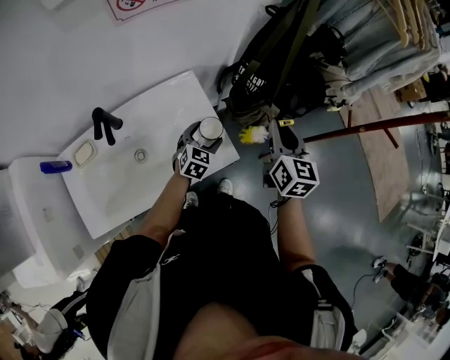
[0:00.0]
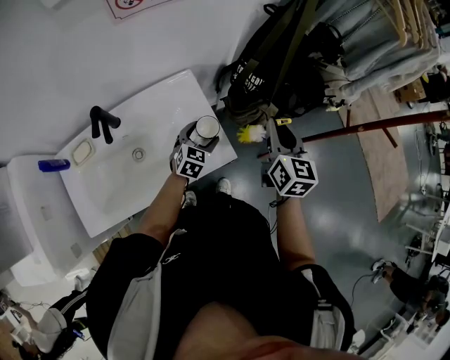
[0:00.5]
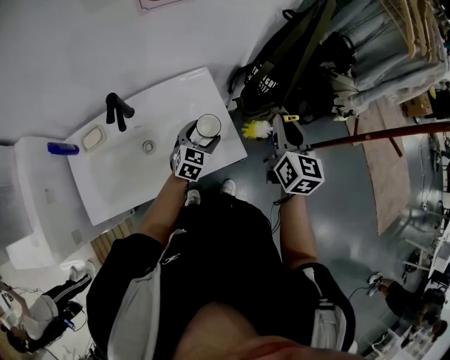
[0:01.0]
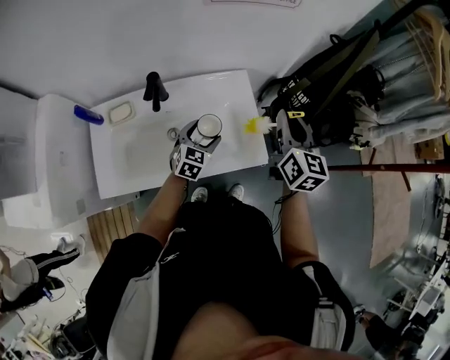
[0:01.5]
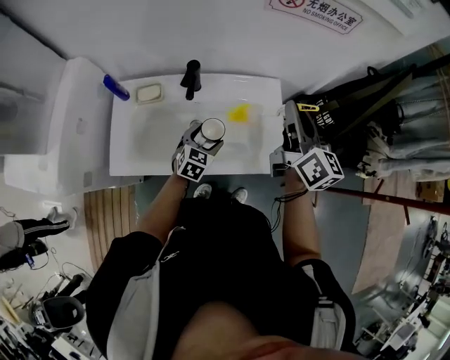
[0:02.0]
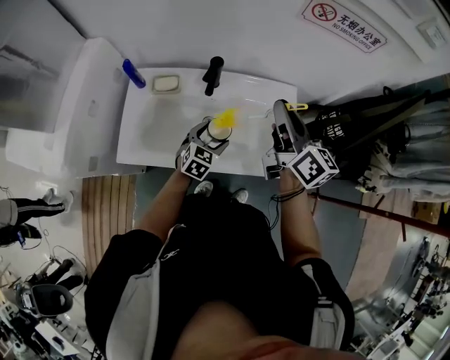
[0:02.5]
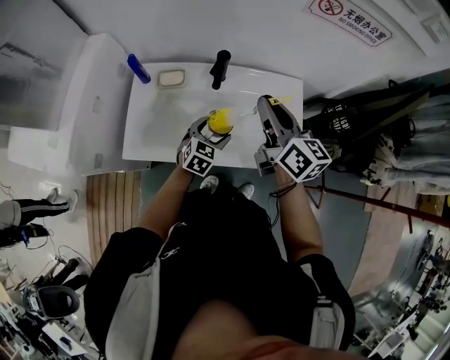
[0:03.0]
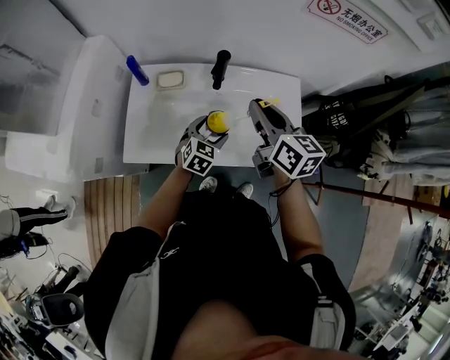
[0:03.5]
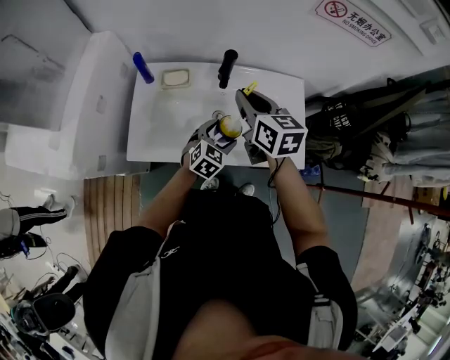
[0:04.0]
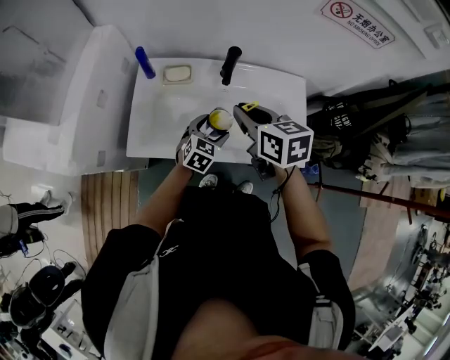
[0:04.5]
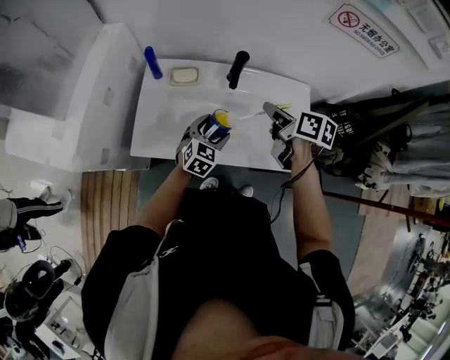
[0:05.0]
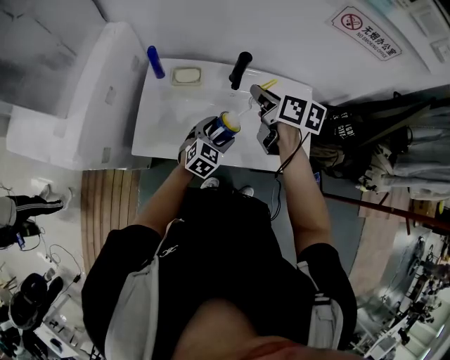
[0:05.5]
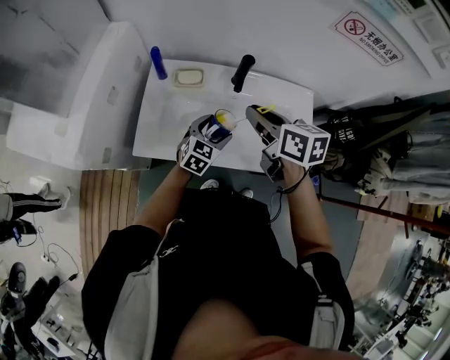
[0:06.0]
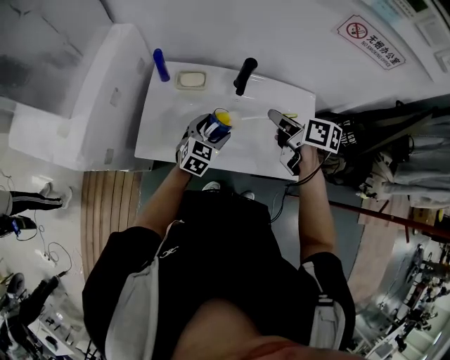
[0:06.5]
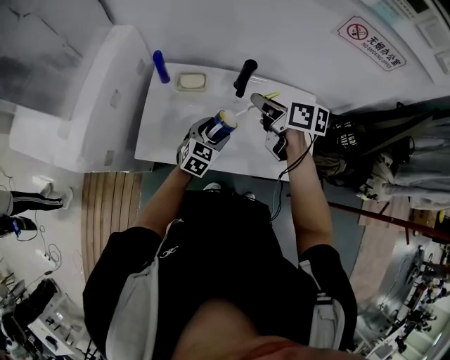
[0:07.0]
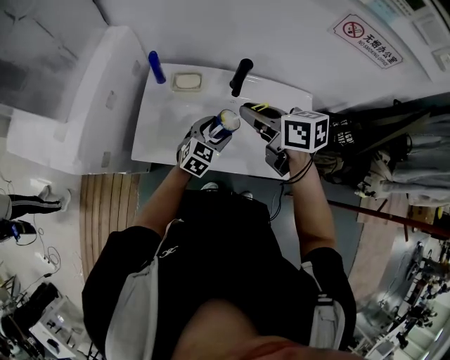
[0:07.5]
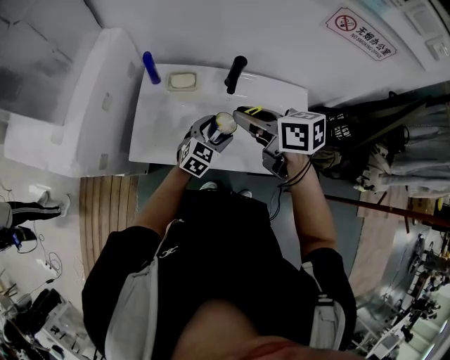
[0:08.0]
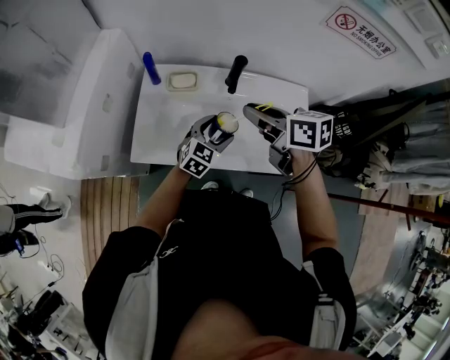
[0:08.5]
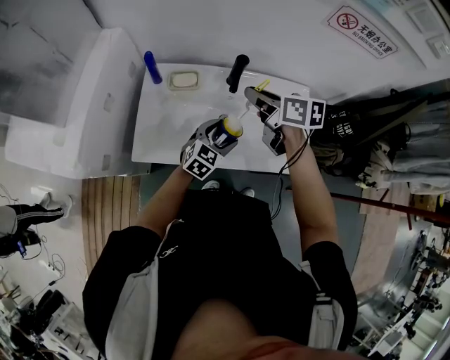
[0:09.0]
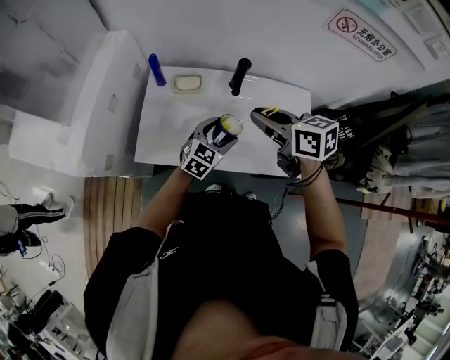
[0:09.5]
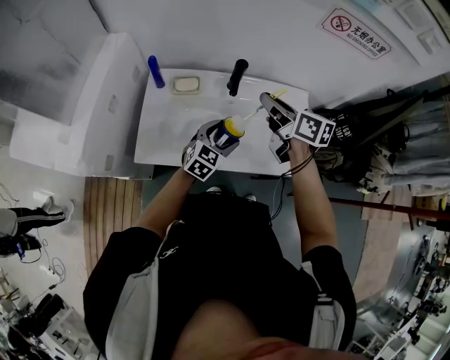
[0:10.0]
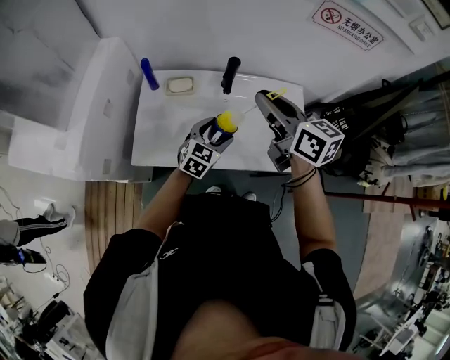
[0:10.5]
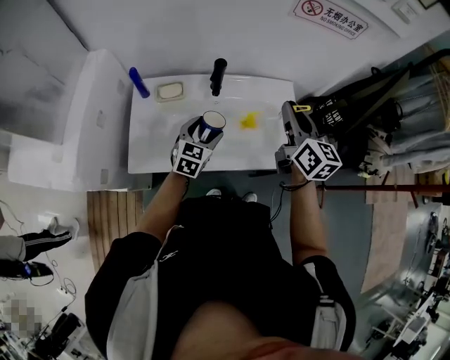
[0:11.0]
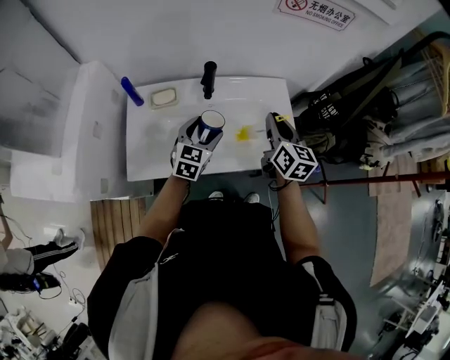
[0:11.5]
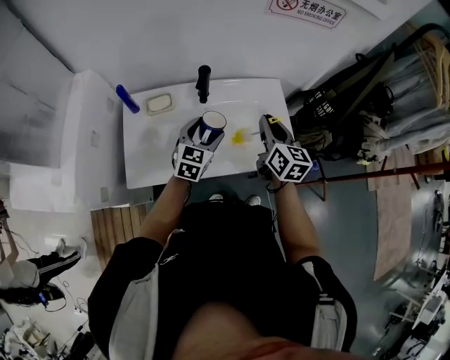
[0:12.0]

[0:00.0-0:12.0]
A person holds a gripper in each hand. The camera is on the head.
0:00.0 to 0:02.0: The right gripper changes place by approximately 25 cm, and rotates approximately 40 degrees, while the left gripper ends up about 25 cm from where it was, and swivels some 30 degrees.
0:02.0 to 0:04.0: The left gripper changes place by some 5 cm. The right gripper heads to the left, covering roughly 25 cm, and swivels some 30 degrees.
0:04.0 to 0:06.0: The right gripper goes forward and backward, some 10 cm each way, reversing 2 times; the left gripper is displaced to the left by approximately 5 cm.
0:06.0 to 0:08.0: The right gripper moves about 5 cm to the right and comes back.
0:08.0 to 0:10.0: The right gripper heads to the right, covering about 10 cm, and changes its angle by roughly 20 degrees.
0:10.0 to 0:12.0: The right gripper heads to the right and backward, covering about 15 cm, and turns by approximately 40 degrees.

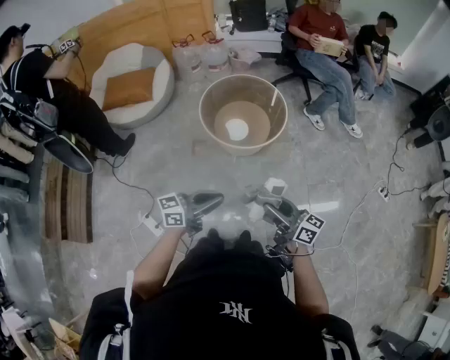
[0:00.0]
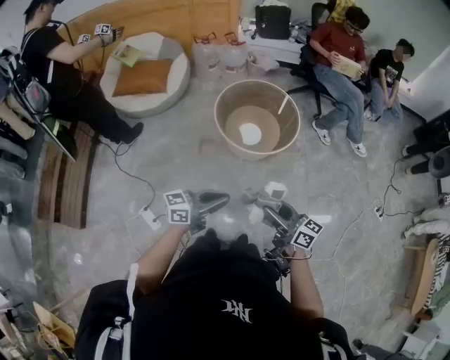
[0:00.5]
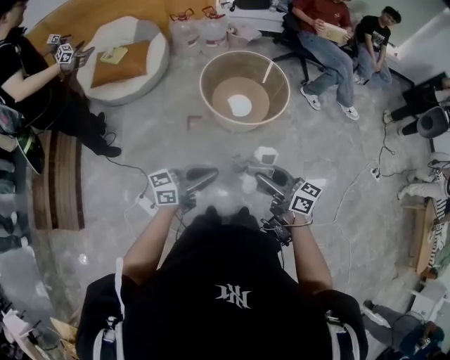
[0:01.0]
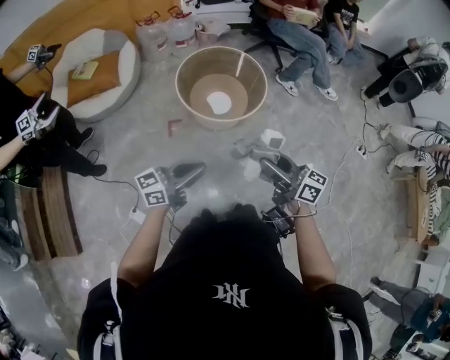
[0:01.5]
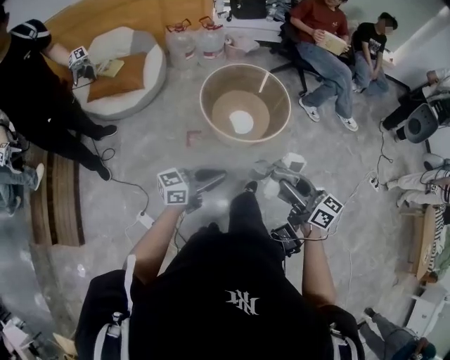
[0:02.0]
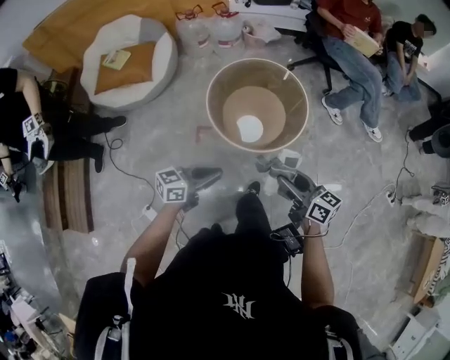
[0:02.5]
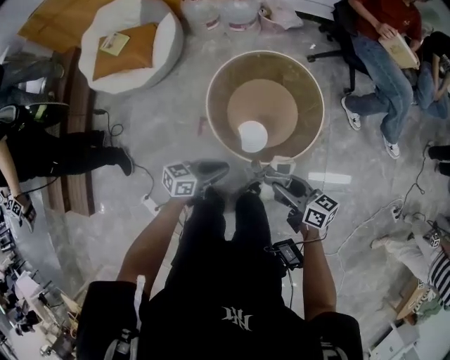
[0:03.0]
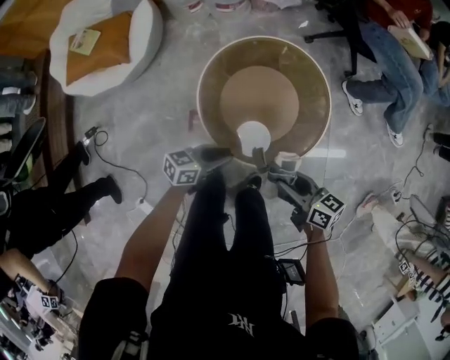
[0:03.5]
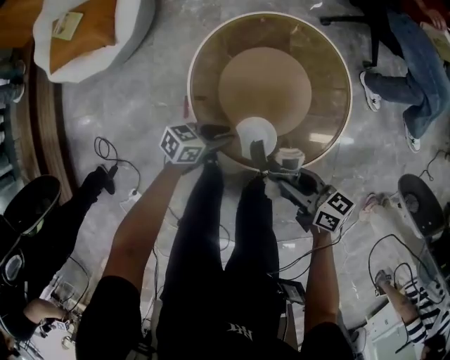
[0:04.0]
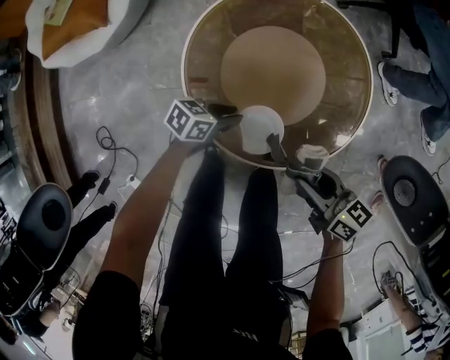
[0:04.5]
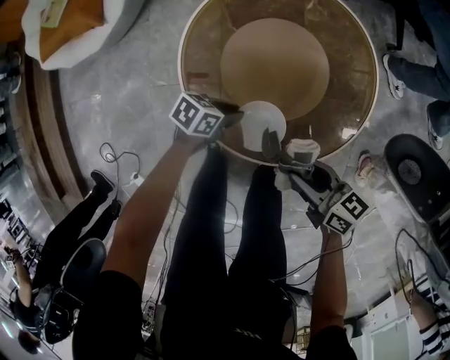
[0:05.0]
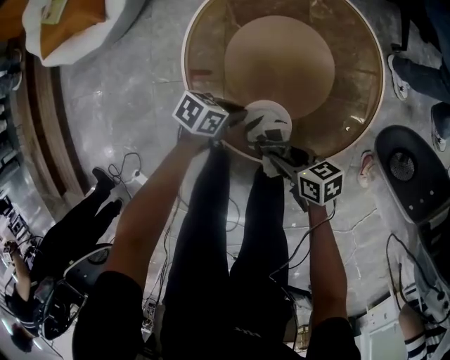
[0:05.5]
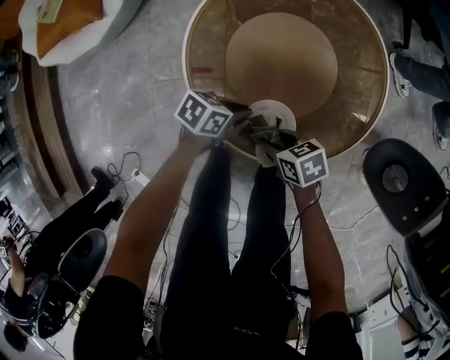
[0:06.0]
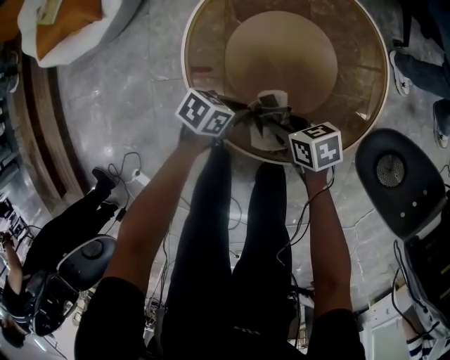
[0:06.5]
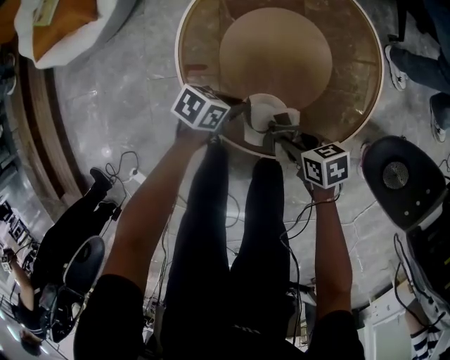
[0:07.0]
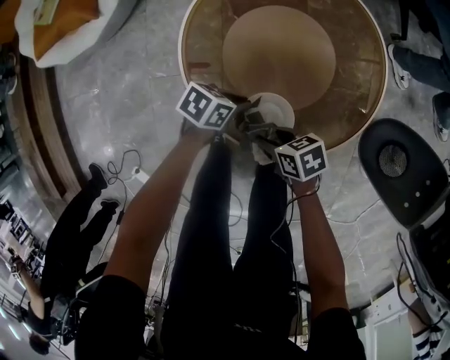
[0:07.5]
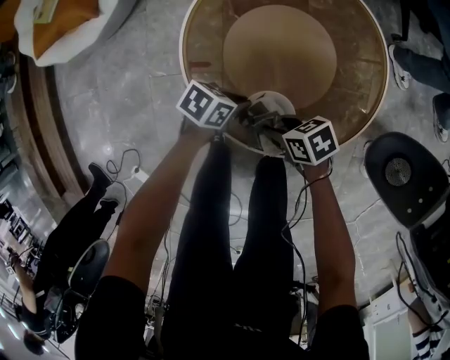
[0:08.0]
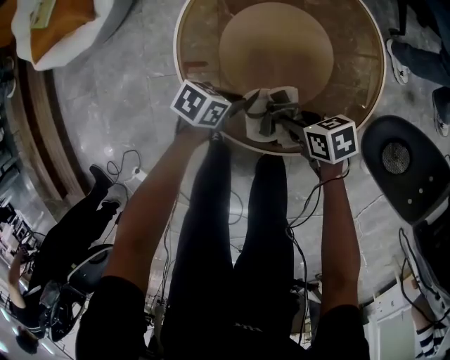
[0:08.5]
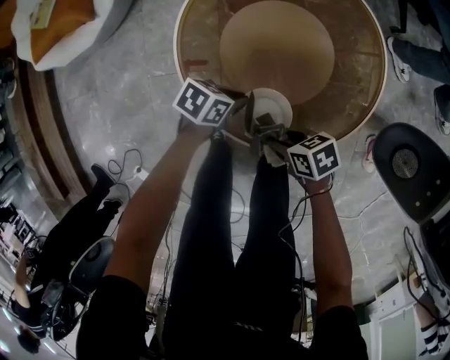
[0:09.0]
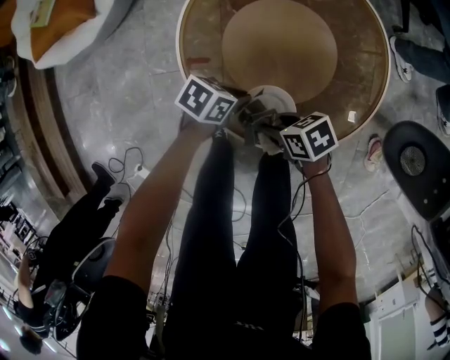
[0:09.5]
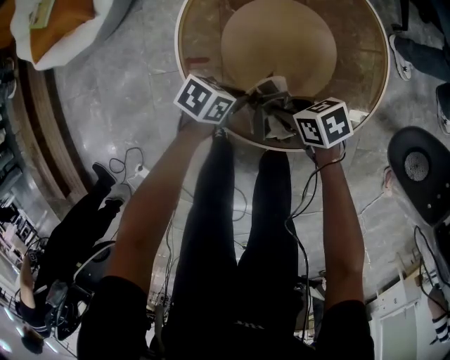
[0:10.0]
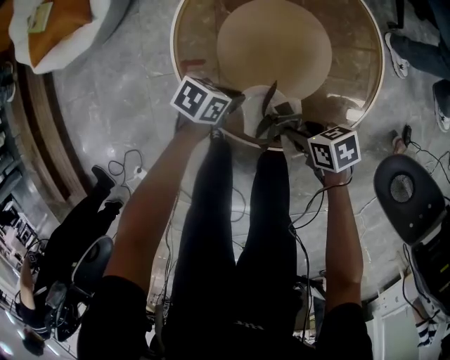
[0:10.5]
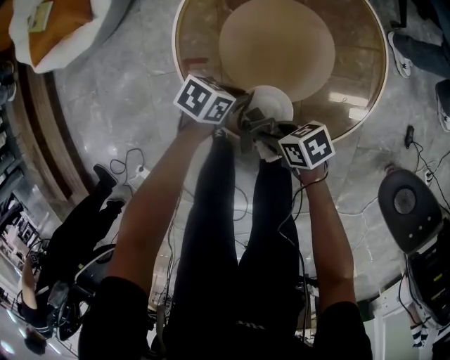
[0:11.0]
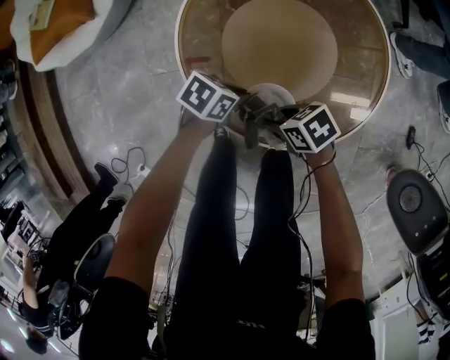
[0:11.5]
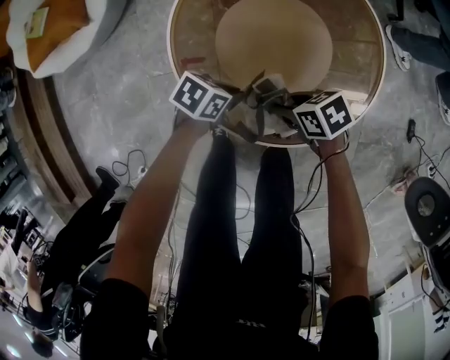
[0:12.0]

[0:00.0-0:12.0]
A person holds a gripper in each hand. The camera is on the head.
0:00.0 to 0:02.0: Both grippers move to the left and forward, some 15 cm.
0:02.0 to 0:04.0: The pair of grippers is taken some 40 cm. The left gripper tilts its fingers some 30 degrees downward. The right gripper turns by some 30 degrees.
0:04.0 to 0:06.0: The right gripper goes roughly 20 cm downward, and turns by about 30 degrees. The left gripper travels downward by approximately 10 cm.
0:08.0 to 0:10.0: The right gripper ends up about 5 cm from where it was.

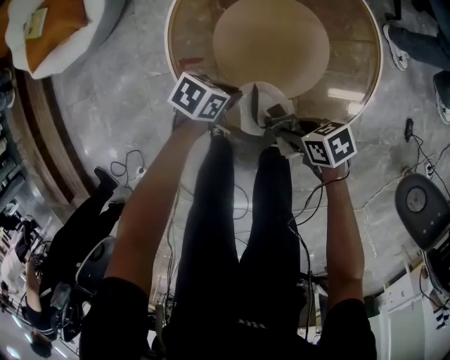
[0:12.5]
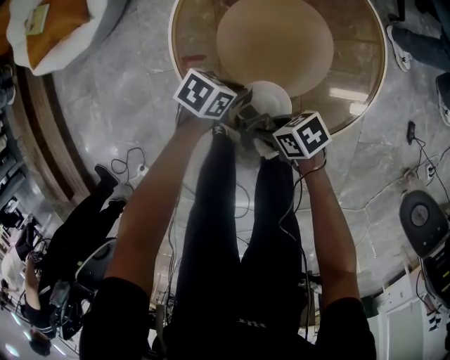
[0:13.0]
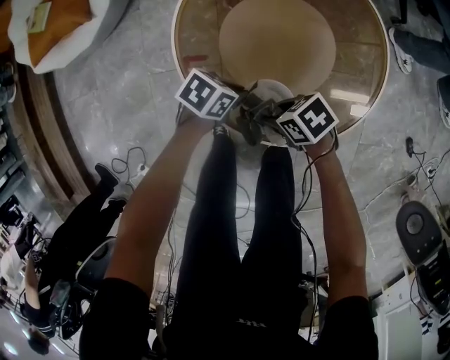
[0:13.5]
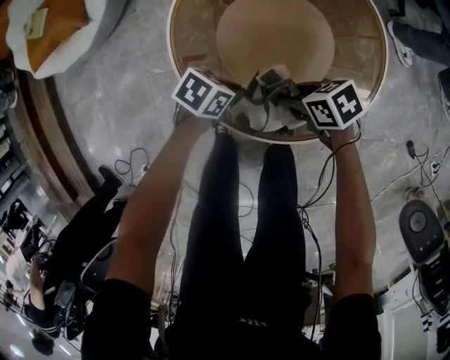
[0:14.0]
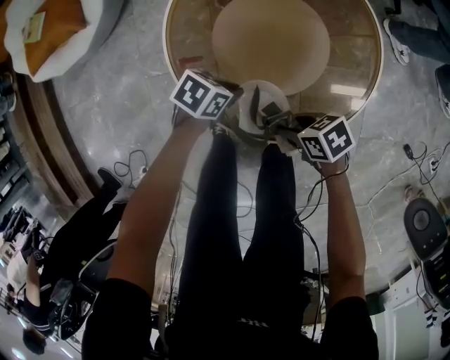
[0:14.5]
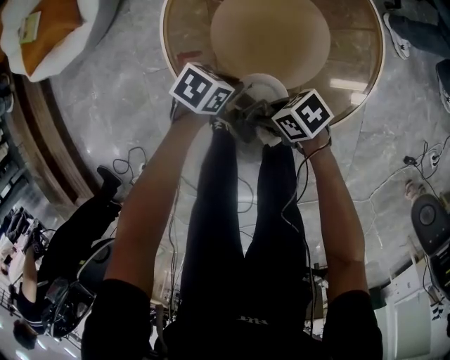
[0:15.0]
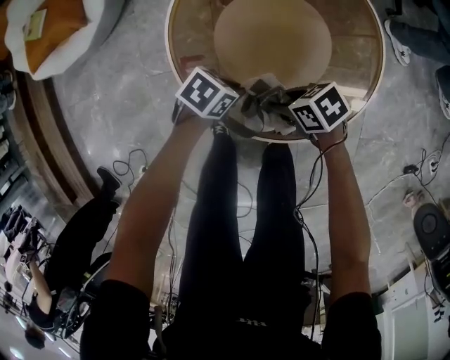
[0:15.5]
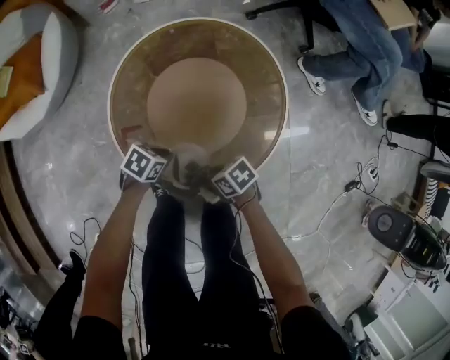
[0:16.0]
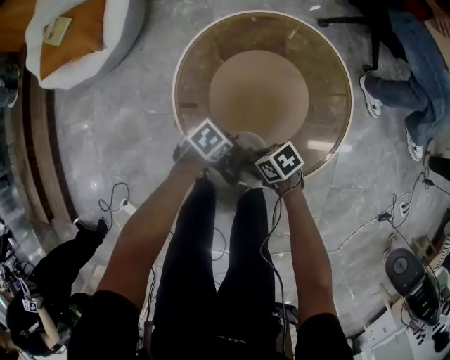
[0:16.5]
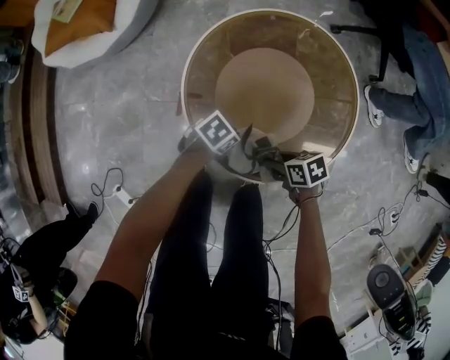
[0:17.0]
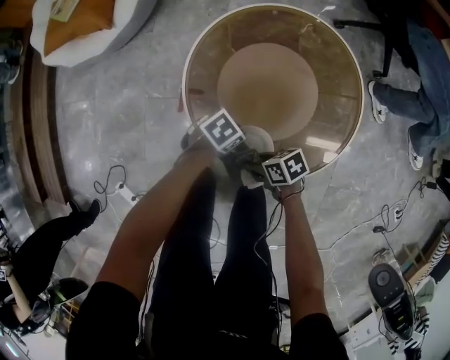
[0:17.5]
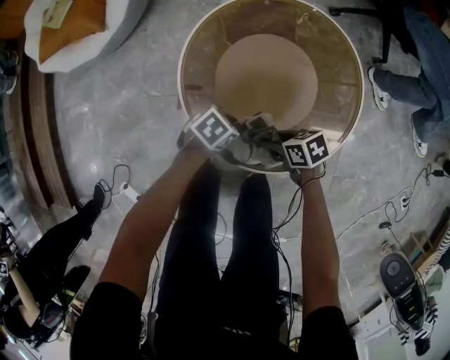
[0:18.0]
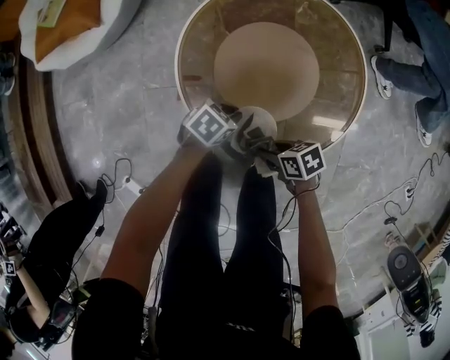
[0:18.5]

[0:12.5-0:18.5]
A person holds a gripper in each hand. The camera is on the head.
0:14.5 to 0:16.5: The right gripper goes left and right, about 5 cm each way, reversing 2 times.
0:16.5 to 0:18.5: The grippers move only a little.
